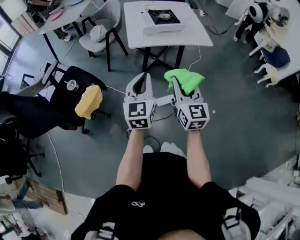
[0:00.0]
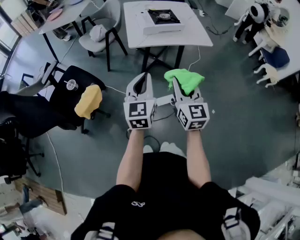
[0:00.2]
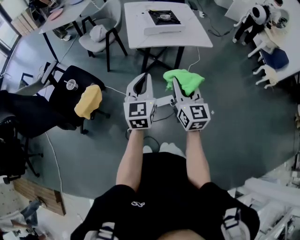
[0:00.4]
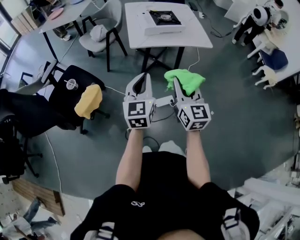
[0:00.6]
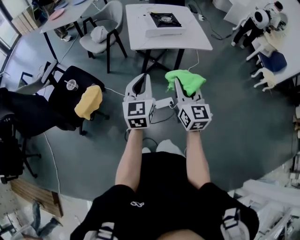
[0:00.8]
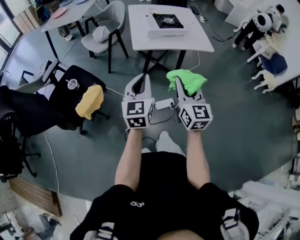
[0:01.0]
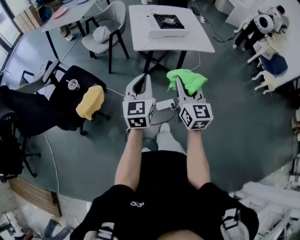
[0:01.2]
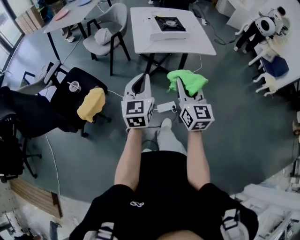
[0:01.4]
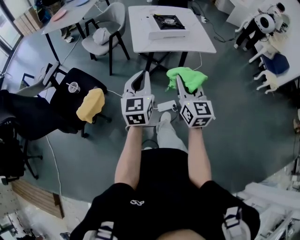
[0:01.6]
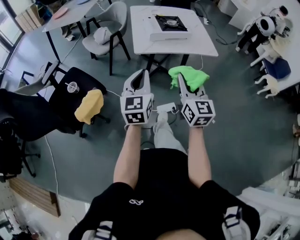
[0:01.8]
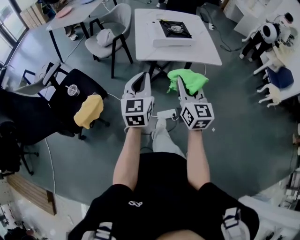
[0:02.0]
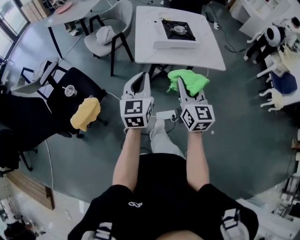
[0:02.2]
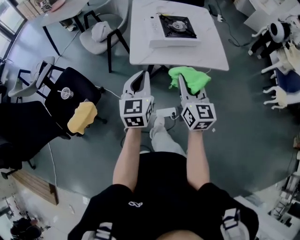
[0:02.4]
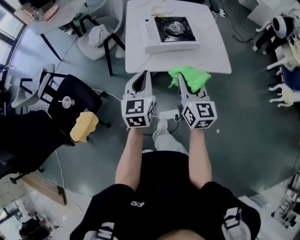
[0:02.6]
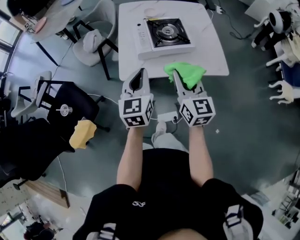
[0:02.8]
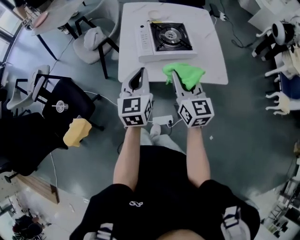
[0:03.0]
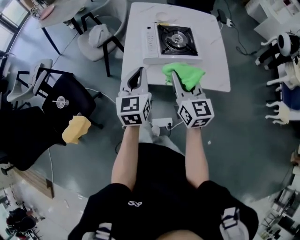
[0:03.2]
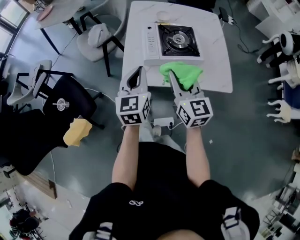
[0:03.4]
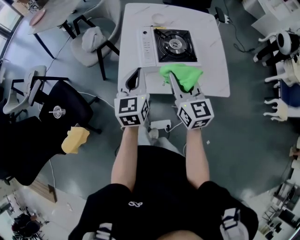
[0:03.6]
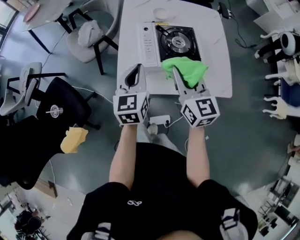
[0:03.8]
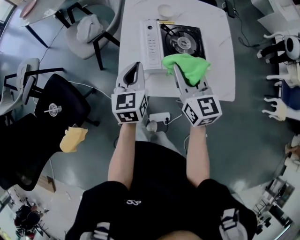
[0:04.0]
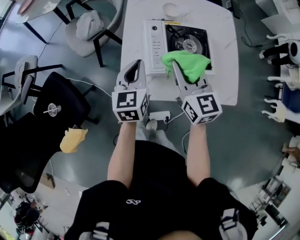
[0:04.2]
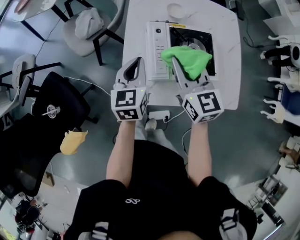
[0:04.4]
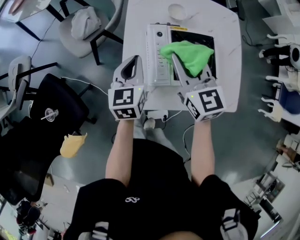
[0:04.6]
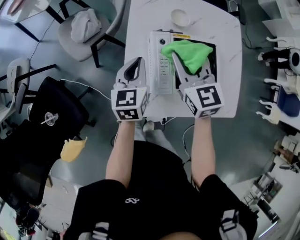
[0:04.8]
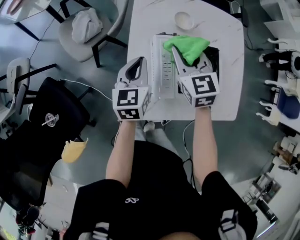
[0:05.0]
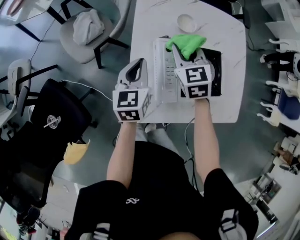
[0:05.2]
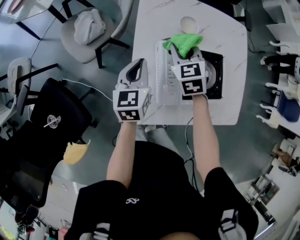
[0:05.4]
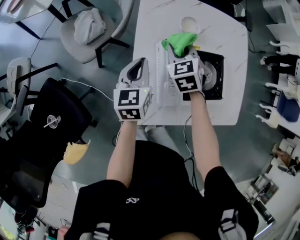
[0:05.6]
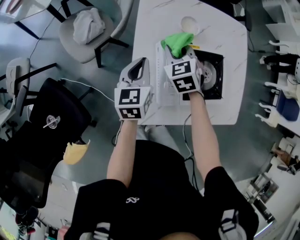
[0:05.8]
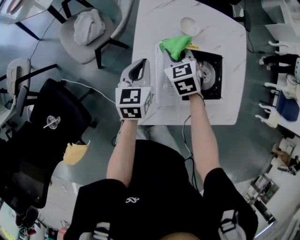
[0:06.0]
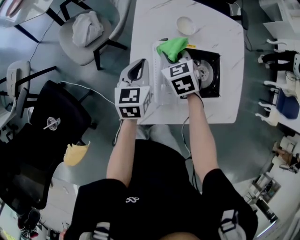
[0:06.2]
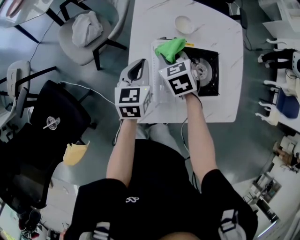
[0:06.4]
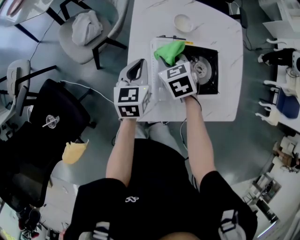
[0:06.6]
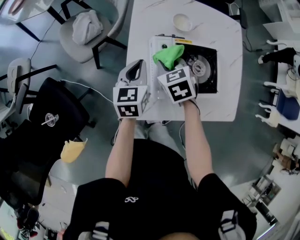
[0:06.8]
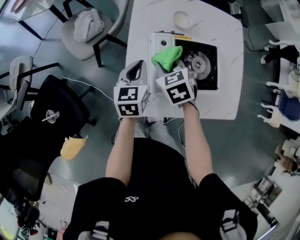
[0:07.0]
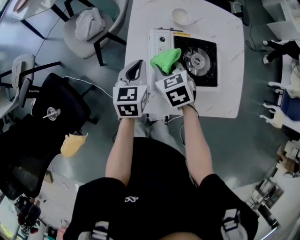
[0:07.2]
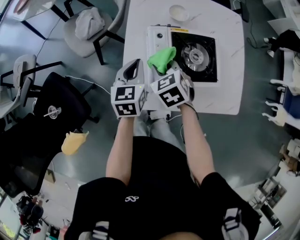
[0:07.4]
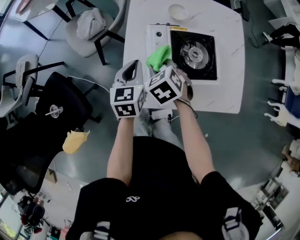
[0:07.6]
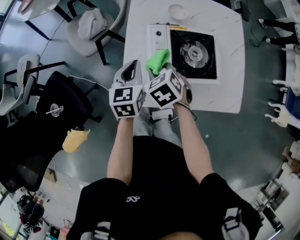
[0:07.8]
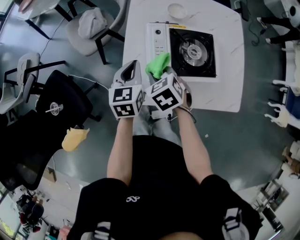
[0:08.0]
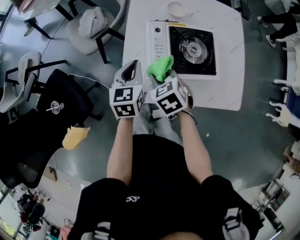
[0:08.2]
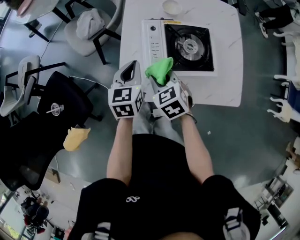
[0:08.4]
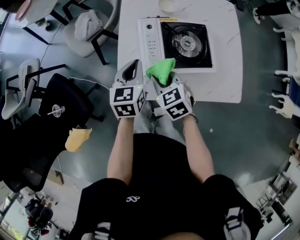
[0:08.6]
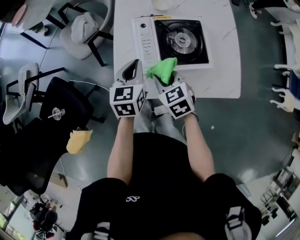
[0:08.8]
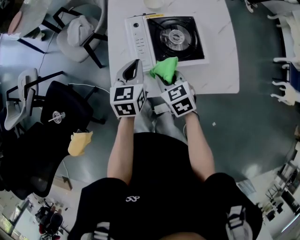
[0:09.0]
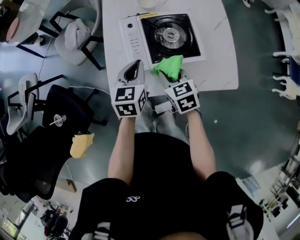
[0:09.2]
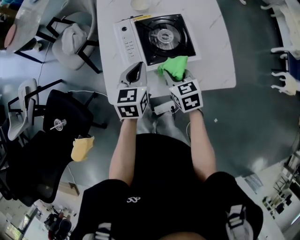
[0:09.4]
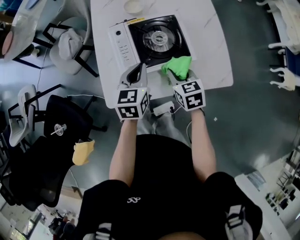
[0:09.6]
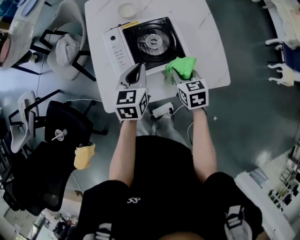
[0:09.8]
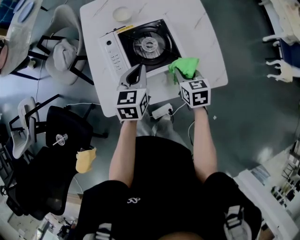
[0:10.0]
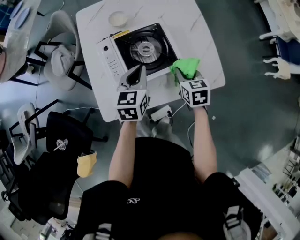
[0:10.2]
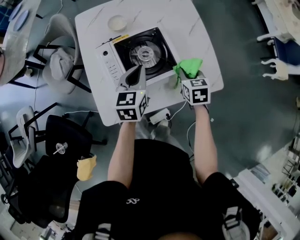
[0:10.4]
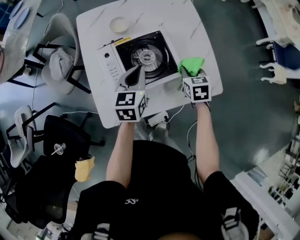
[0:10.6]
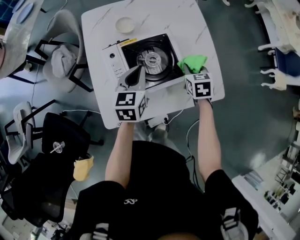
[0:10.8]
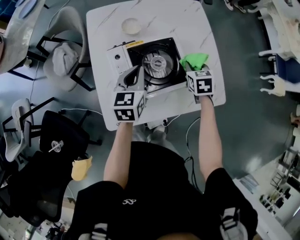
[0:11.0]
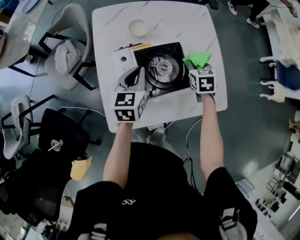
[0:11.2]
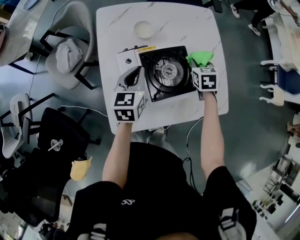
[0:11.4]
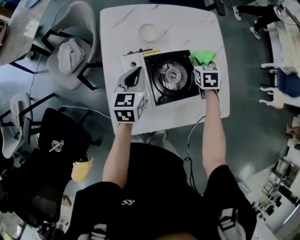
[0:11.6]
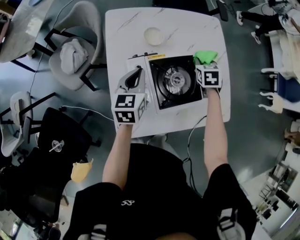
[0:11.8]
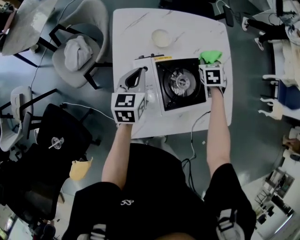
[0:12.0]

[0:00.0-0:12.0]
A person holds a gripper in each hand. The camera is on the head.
0:00.0 to 0:01.6: The left gripper shifts by about 5 cm.
0:01.6 to 0:03.0: The grippers both shift forward by roughly 35 cm.
0:03.0 to 0:04.4: The right gripper heads forward, covering approximately 25 cm, while the left gripper heads forward and downward, covering about 25 cm.
0:04.4 to 0:06.0: The left gripper is displaced forward by some 10 cm. The right gripper travels forward and downward by roughly 20 cm, and angles its fingers downward, by roughly 30 degrees.
0:06.0 to 0:07.6: The right gripper is displaced backward by roughly 15 cm; the left gripper travels backward by roughly 10 cm.
0:07.6 to 0:09.0: The right gripper is displaced backward and to the right by roughly 15 cm, and rotates approximately 20 degrees; the left gripper travels to the right and backward by some 10 cm.
0:09.0 to 0:10.4: The right gripper ends up roughly 25 cm from where it was, and rotates roughly 30 degrees, while the left gripper shifts by about 15 cm.
0:10.4 to 0:12.0: The left gripper heads to the left, covering about 20 cm; the right gripper shifts approximately 25 cm forward and to the left, and changes its angle by roughly 20 degrees.

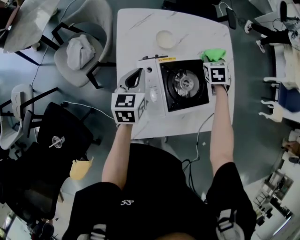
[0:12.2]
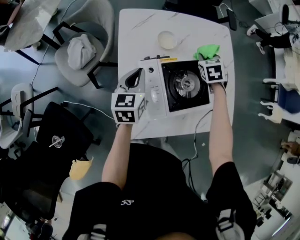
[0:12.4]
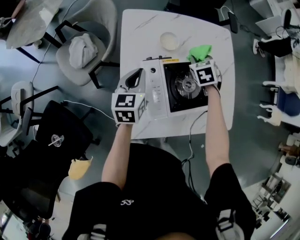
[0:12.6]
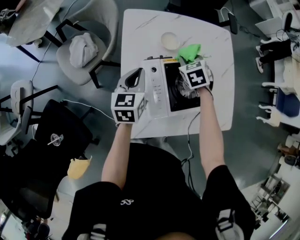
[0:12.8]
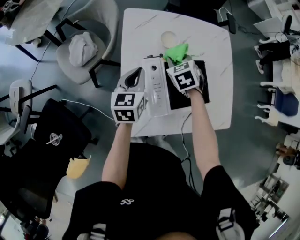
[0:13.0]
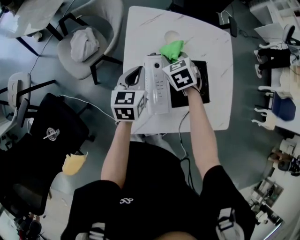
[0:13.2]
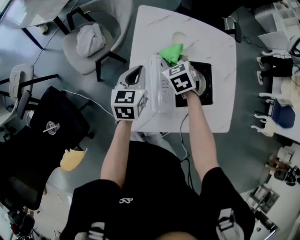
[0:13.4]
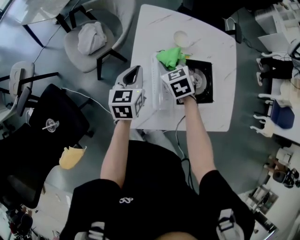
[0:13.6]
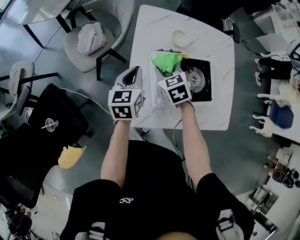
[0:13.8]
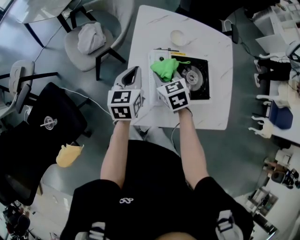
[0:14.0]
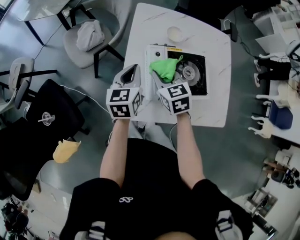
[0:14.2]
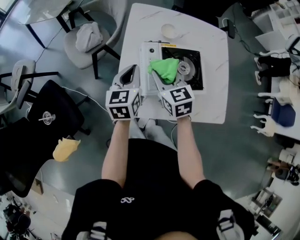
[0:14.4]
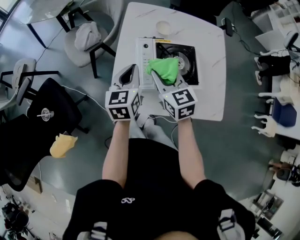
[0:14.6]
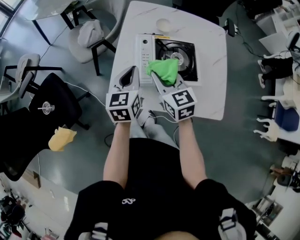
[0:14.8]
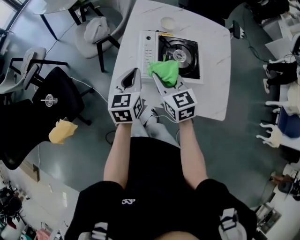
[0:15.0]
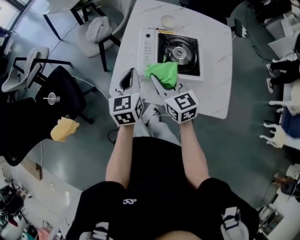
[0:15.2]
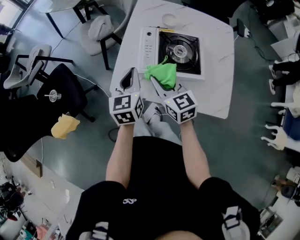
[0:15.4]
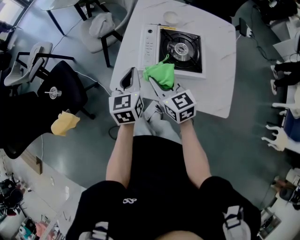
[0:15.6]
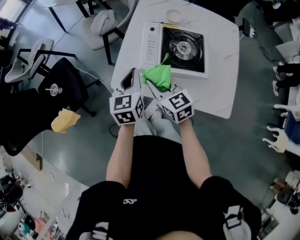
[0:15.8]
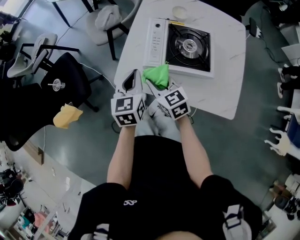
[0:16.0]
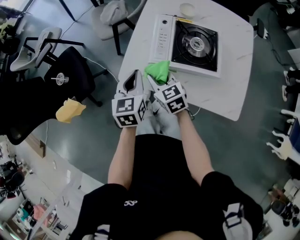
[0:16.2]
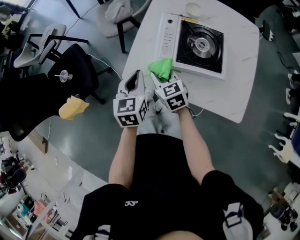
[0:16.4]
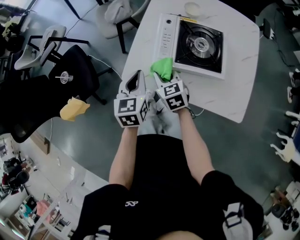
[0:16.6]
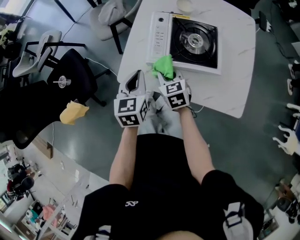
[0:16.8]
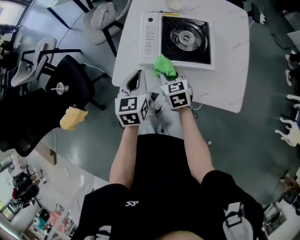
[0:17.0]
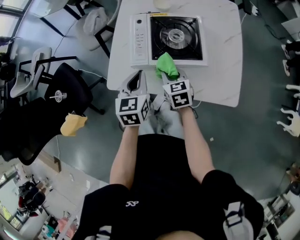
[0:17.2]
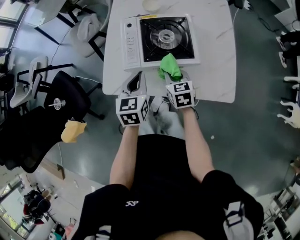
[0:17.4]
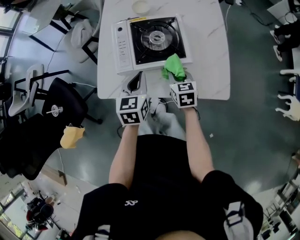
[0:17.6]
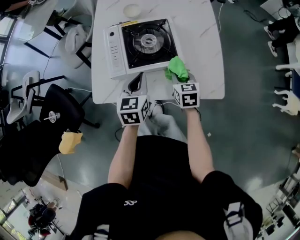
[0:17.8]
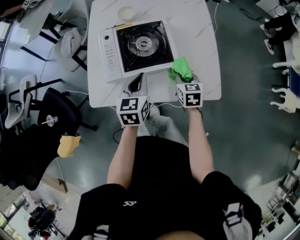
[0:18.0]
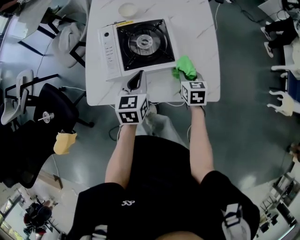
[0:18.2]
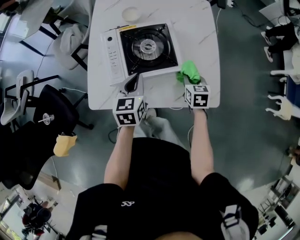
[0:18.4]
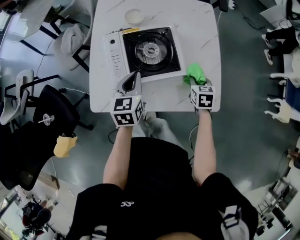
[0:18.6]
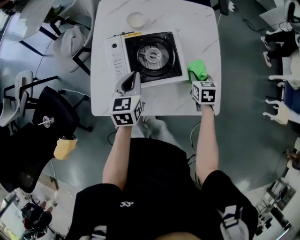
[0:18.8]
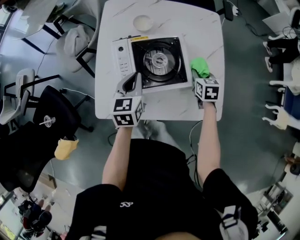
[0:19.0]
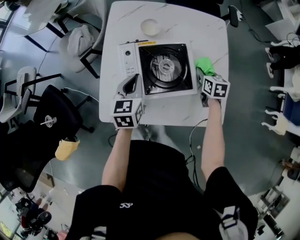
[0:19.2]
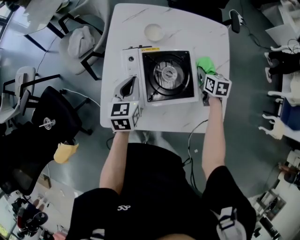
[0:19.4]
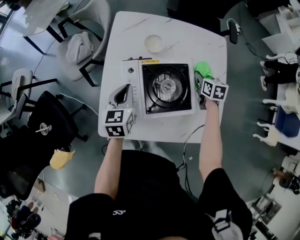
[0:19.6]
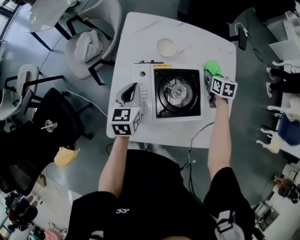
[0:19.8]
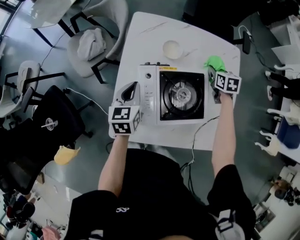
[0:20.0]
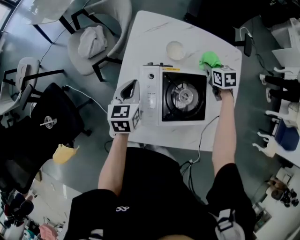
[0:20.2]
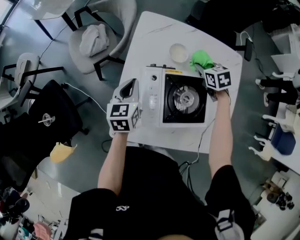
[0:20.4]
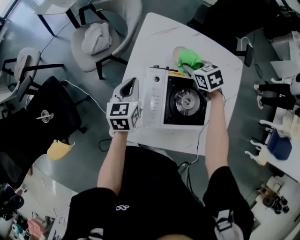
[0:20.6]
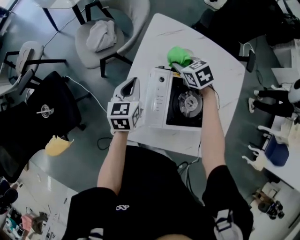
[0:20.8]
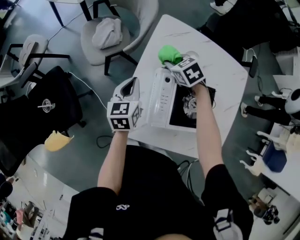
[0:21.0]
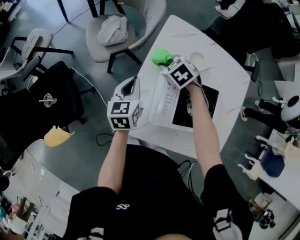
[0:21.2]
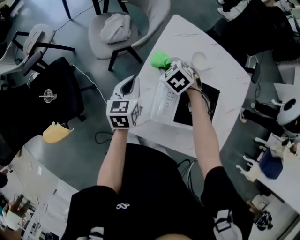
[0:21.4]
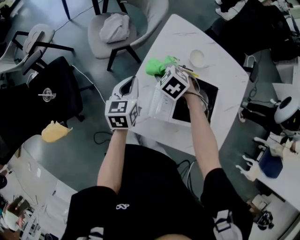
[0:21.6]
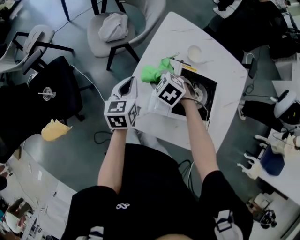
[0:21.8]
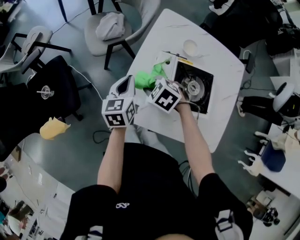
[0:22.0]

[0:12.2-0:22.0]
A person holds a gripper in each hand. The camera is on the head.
0:12.2 to 0:13.6: The left gripper is displaced to the left and backward by some 10 cm. The right gripper goes about 30 cm to the left and backward, and rotates roughly 30 degrees.
0:13.6 to 0:15.0: The left gripper heads backward and to the right, covering about 20 cm, while the right gripper travels backward by about 20 cm, and swivels approximately 30 degrees.
0:15.0 to 0:16.4: The left gripper travels to the left by approximately 5 cm, while the right gripper heads downward and to the left, covering about 15 cm.
0:16.4 to 0:17.8: The left gripper ends up roughly 20 cm from where it was, and rotates roughly 20 degrees, while the right gripper shifts by some 30 cm, and changes its angle by some 40 degrees.
0:17.8 to 0:19.2: The right gripper heads forward, covering roughly 15 cm; the left gripper heads forward and to the left, covering about 15 cm.
0:19.2 to 0:20.6: The left gripper heads to the left and forward, covering roughly 15 cm; the right gripper is displaced to the left and forward by about 30 cm, and turns by approximately 40 degrees.
0:20.6 to 0:22.0: The left gripper moves to the left and backward, some 10 cm, while the right gripper goes approximately 30 cm to the left and backward, and swivels about 30 degrees.

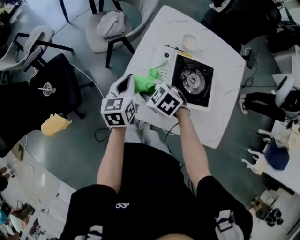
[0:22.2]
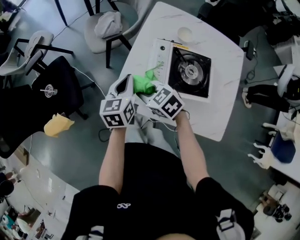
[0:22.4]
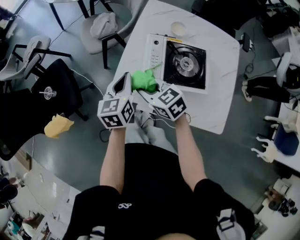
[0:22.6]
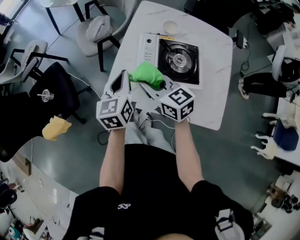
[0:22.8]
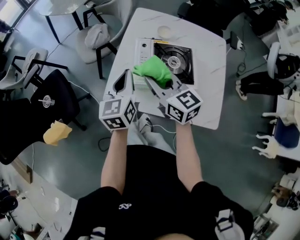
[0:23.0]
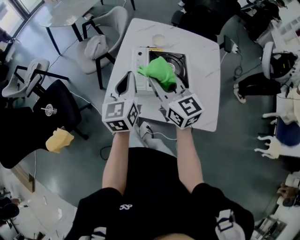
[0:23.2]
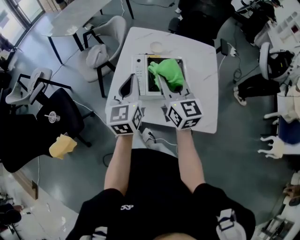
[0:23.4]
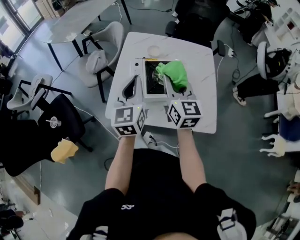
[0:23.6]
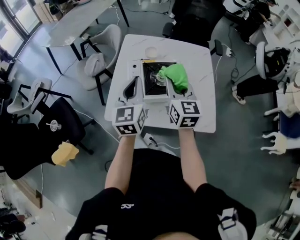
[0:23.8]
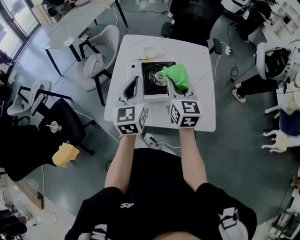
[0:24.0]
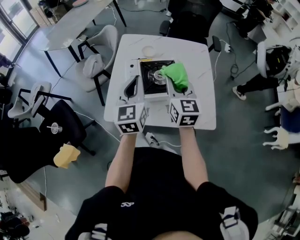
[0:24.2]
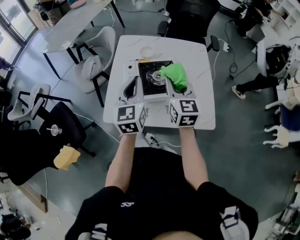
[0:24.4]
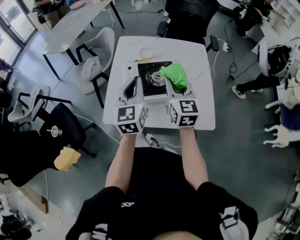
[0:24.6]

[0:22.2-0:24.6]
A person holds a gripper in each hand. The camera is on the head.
0:22.2 to 0:23.4: The grippers both shift upward by some 20 cm. The left gripper turns by about 30 degrees. The right gripper angles its fingers upward, by approximately 60 degrees.
0:23.4 to 0:24.6: Both grippers travel together to the right, approximately 5 cm.
